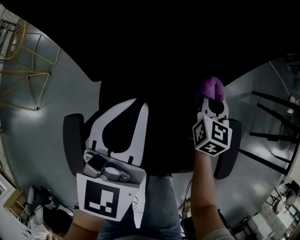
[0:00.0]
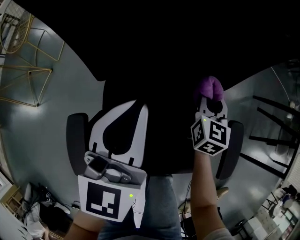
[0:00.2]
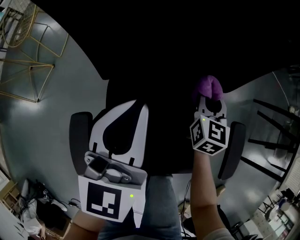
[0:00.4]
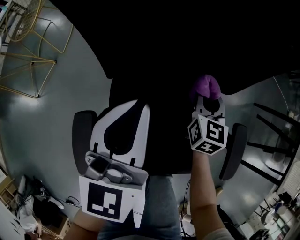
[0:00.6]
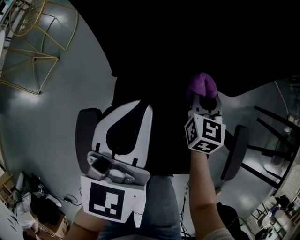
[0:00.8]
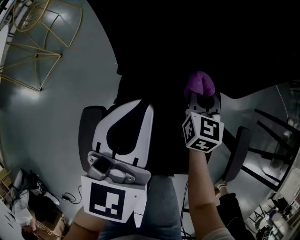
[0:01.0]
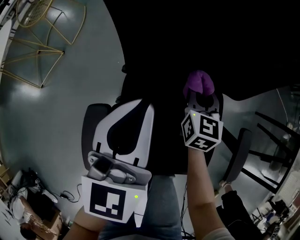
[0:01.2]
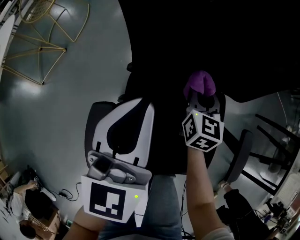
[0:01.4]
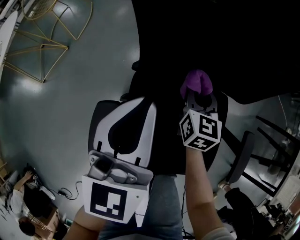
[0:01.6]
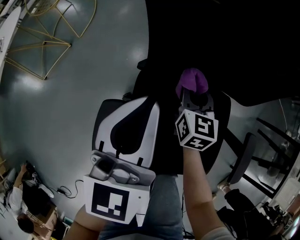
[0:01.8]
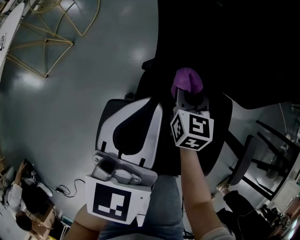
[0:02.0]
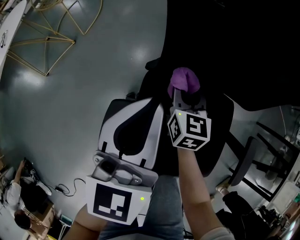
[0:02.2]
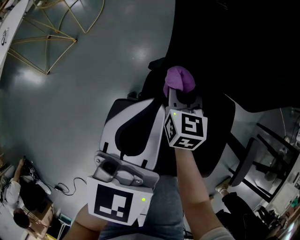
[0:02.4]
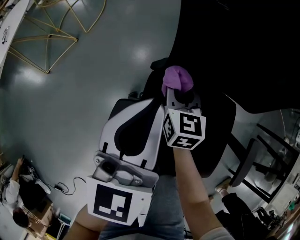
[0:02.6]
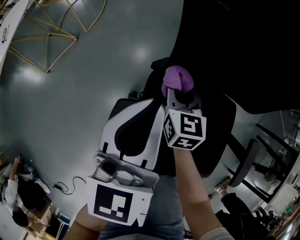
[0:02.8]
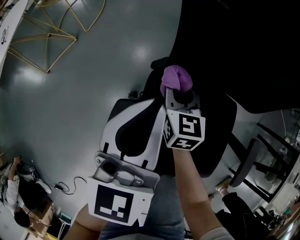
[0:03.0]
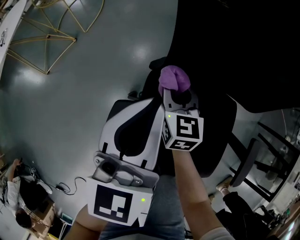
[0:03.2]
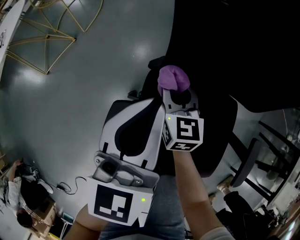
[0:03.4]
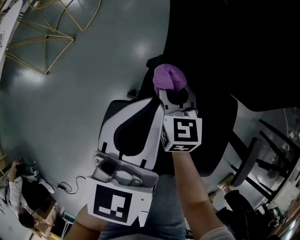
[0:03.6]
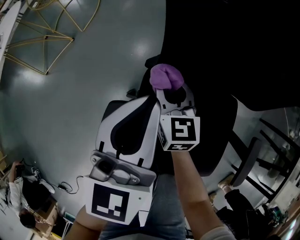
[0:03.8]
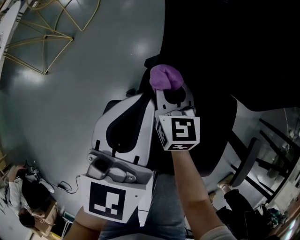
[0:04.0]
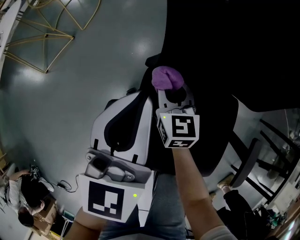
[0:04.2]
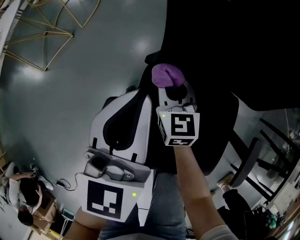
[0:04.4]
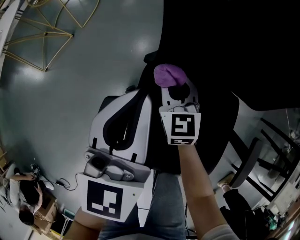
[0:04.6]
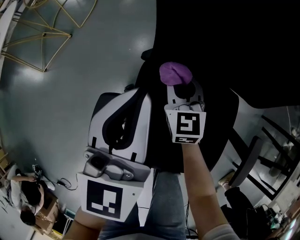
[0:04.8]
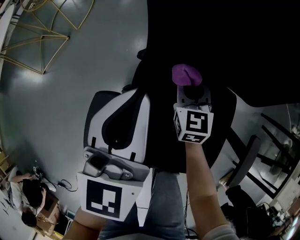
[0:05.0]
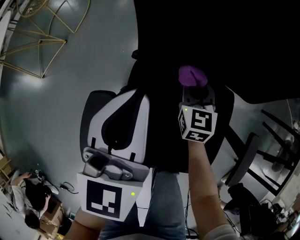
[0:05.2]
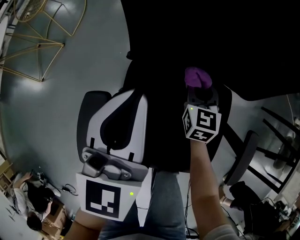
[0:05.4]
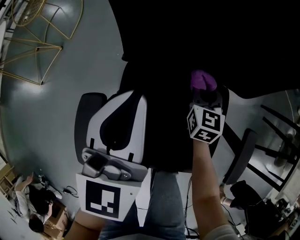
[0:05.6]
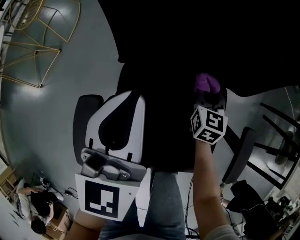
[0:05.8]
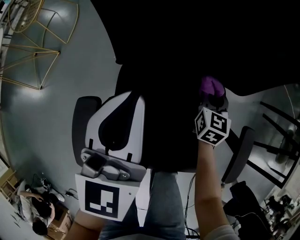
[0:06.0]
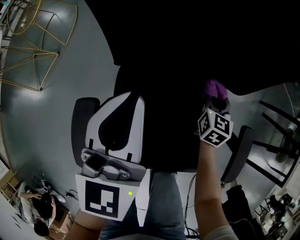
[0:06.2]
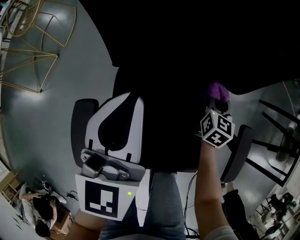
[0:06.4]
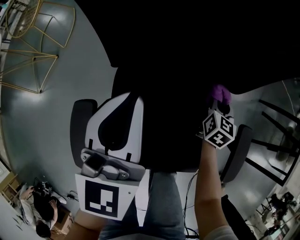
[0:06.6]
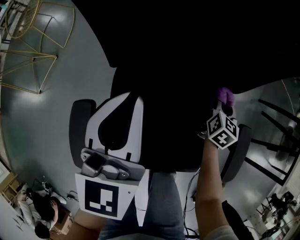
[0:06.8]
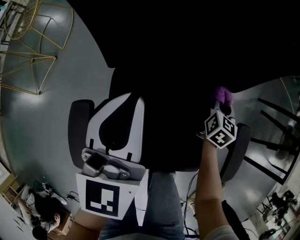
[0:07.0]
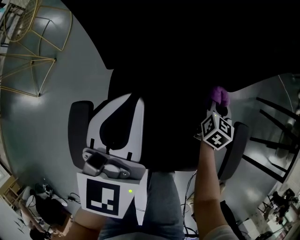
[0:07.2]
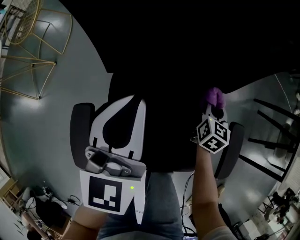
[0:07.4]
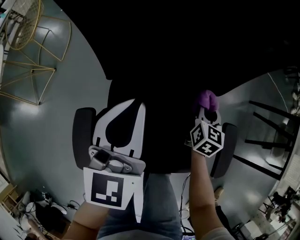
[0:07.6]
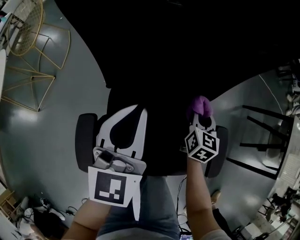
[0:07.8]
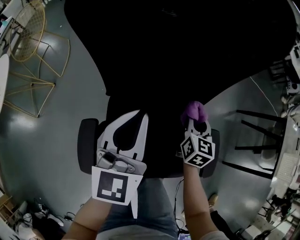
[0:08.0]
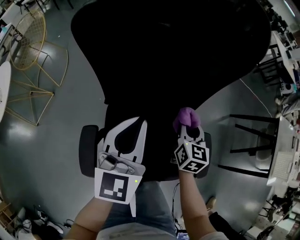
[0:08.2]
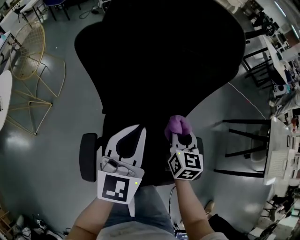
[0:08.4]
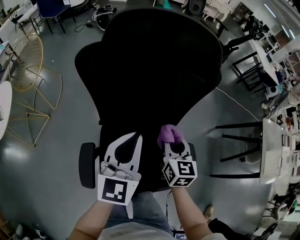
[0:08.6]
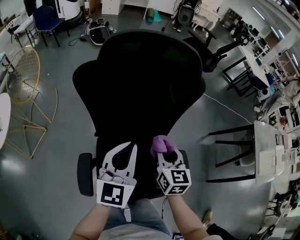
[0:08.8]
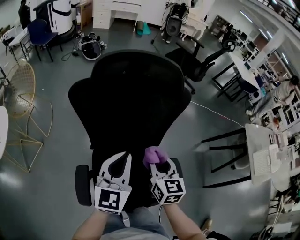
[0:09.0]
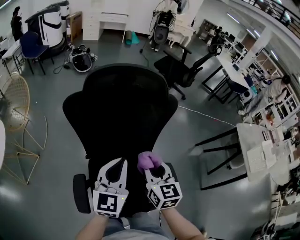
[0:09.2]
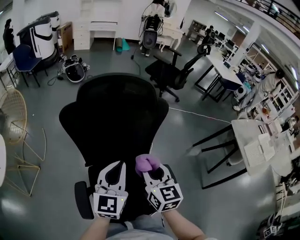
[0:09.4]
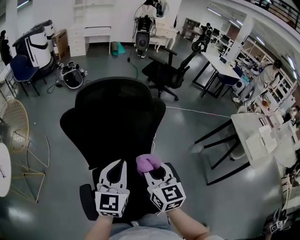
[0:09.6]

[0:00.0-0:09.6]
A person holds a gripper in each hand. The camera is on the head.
0:00.0 to 0:01.6: The left gripper goes roughly 10 cm to the left; the right gripper shifts about 20 cm to the left.
0:01.6 to 0:03.2: The right gripper shifts approximately 15 cm to the left. Meanwhile the left gripper goes about 5 cm to the left.
0:03.2 to 0:04.8: The grippers make only small movements.
0:04.8 to 0:06.4: The left gripper goes some 10 cm to the right. Meanwhile the right gripper travels to the right by some 30 cm, and turns by approximately 40 degrees.
0:06.4 to 0:08.0: The right gripper moves upward, approximately 15 cm; the left gripper goes about 5 cm upward.
0:08.0 to 0:09.6: The right gripper heads upward, covering about 25 cm, and rotates approximately 20 degrees. Meanwhile the left gripper is displaced upward and to the right by about 15 cm.

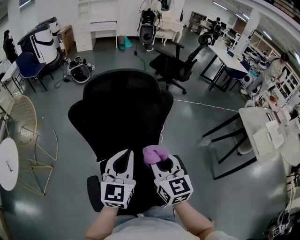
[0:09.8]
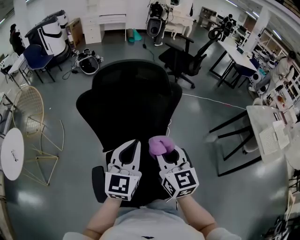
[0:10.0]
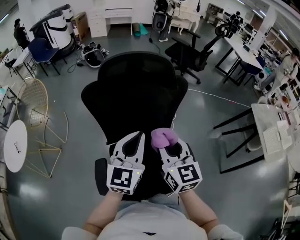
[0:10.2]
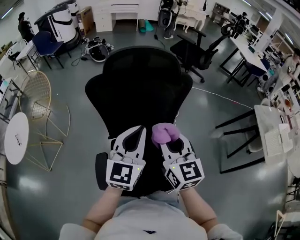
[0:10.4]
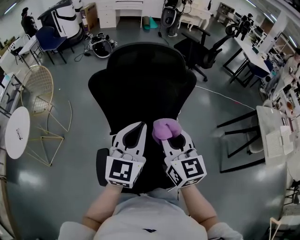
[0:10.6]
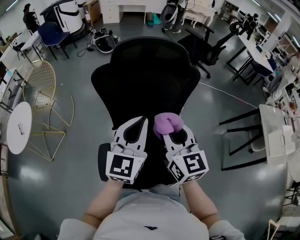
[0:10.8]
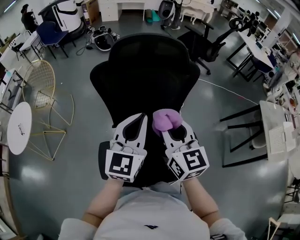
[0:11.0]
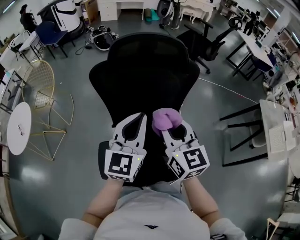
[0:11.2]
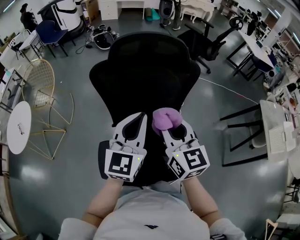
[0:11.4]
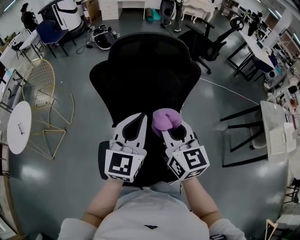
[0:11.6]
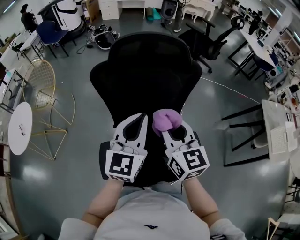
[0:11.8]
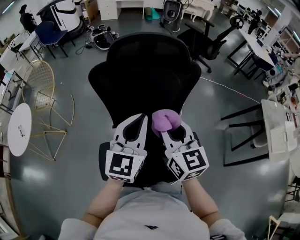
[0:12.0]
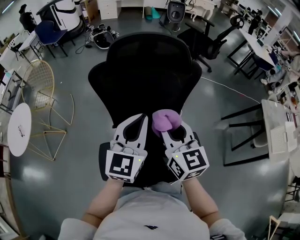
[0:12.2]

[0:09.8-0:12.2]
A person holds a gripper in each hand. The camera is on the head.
0:09.8 to 0:11.0: The right gripper moves roughly 5 cm; the left gripper shifts by approximately 5 cm.
0:11.0 to 0:12.2: The grippers make only small movements.

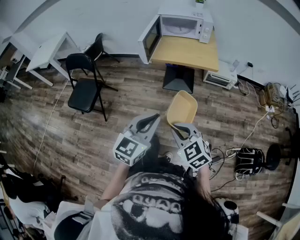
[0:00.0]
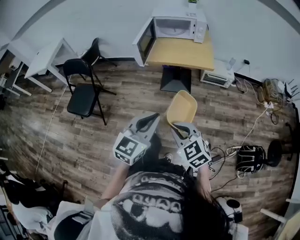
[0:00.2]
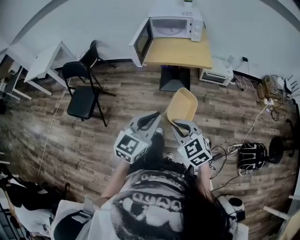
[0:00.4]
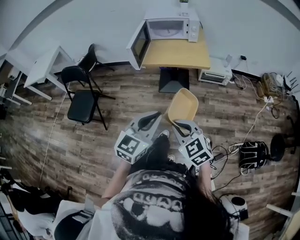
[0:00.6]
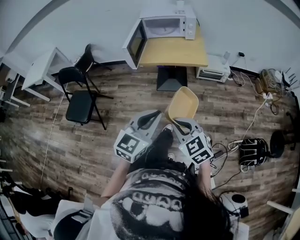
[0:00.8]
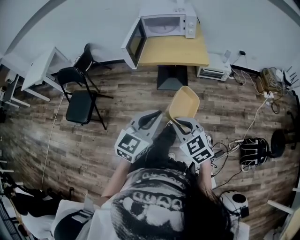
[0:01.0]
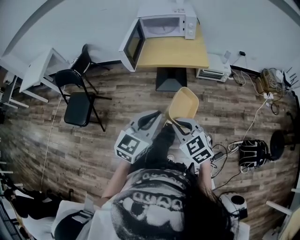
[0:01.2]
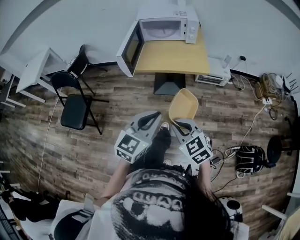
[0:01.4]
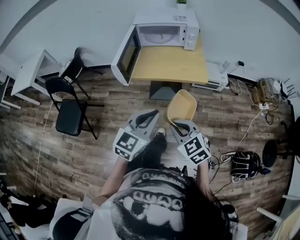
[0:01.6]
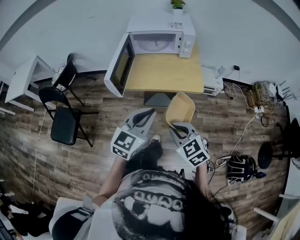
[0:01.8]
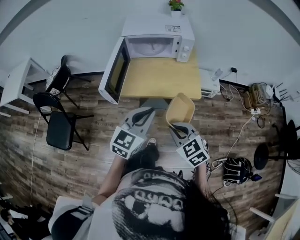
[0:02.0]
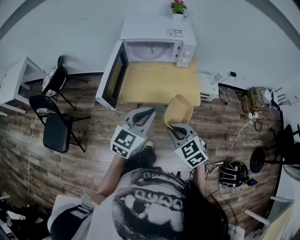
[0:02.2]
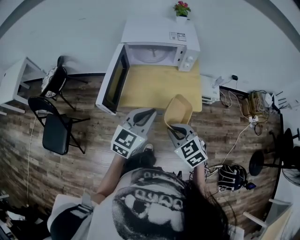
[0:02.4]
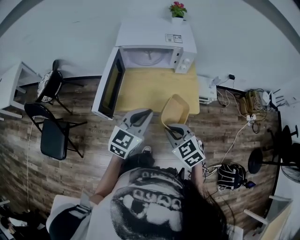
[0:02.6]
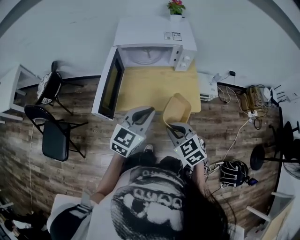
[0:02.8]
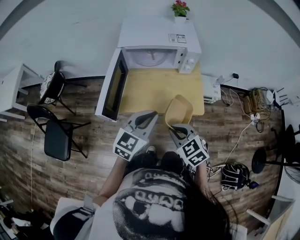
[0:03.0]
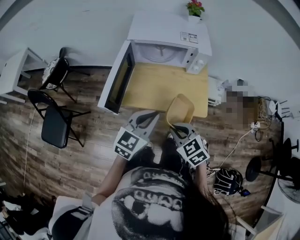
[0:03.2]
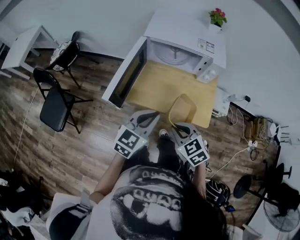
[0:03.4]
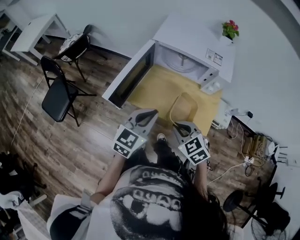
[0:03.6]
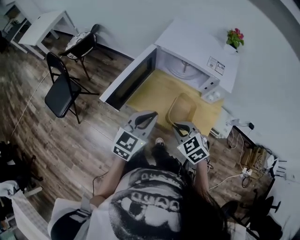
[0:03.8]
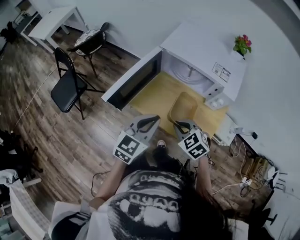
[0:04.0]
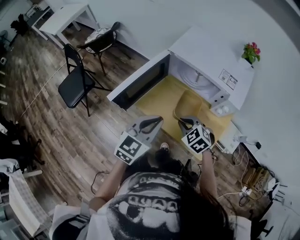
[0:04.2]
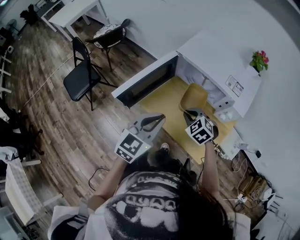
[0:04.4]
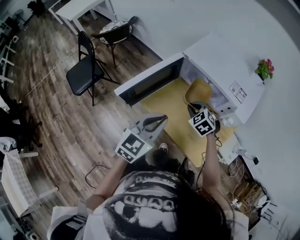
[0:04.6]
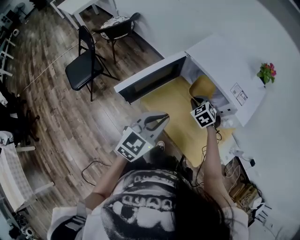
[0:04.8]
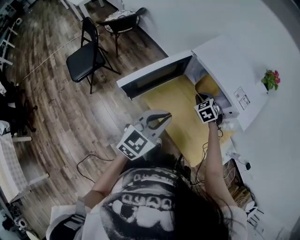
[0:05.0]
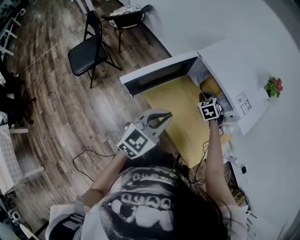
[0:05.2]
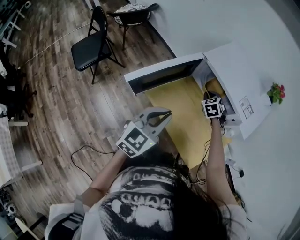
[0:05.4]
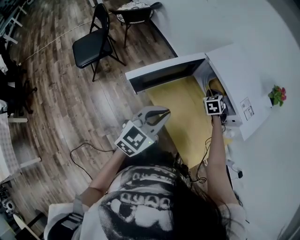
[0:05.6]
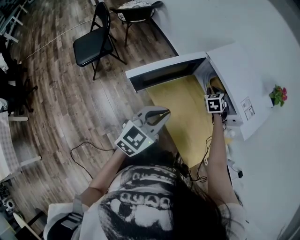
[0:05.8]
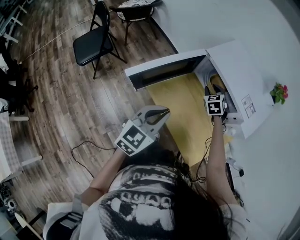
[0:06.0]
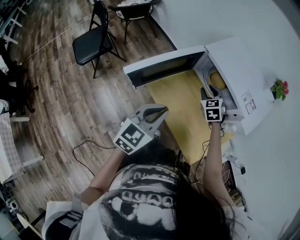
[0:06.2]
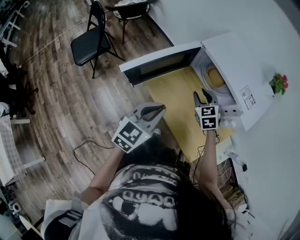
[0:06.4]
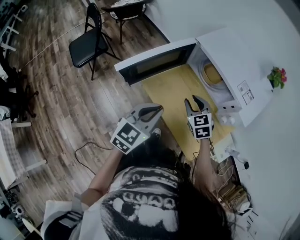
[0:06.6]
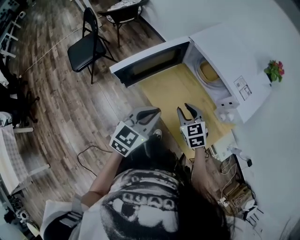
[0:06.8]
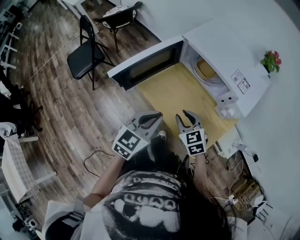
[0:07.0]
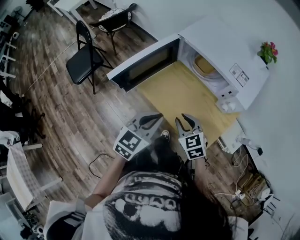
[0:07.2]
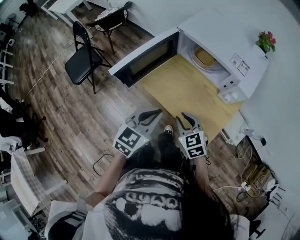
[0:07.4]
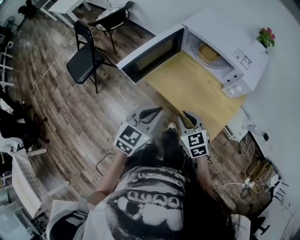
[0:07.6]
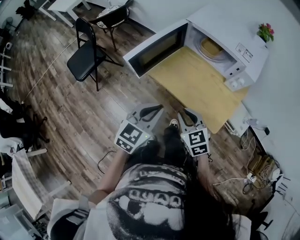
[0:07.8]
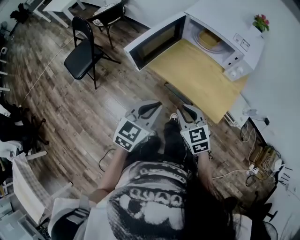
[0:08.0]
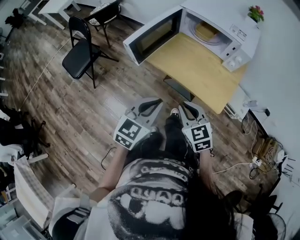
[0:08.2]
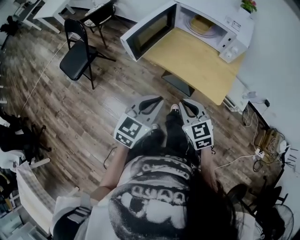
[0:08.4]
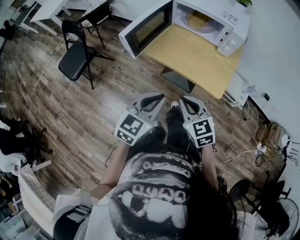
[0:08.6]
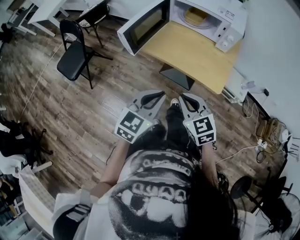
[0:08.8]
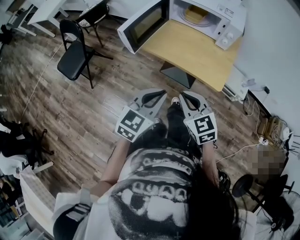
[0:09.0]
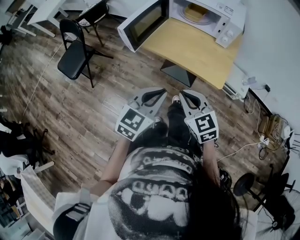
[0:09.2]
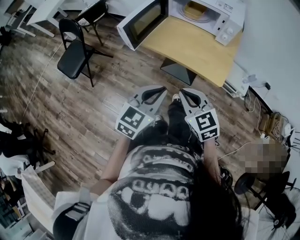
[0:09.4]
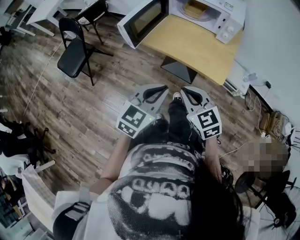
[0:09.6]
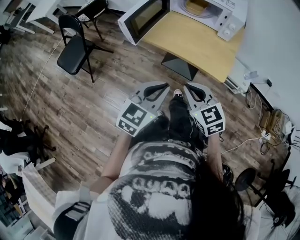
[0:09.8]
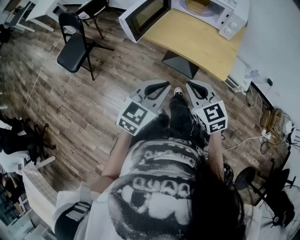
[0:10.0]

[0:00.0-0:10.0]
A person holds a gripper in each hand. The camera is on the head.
0:00.0 to 0:01.4: The grippers both shift forward and to the right by about 15 cm.
0:01.4 to 0:02.8: Both grippers move forward, roughly 35 cm.
0:02.8 to 0:04.2: The left gripper ends up approximately 10 cm from where it was, and turns by about 30 degrees. Meanwhile the right gripper changes place by roughly 20 cm, and swivels about 40 degrees.
0:04.2 to 0:05.8: The right gripper is displaced forward by some 25 cm.
0:05.8 to 0:07.2: The right gripper moves backward, some 30 cm, and changes its angle by roughly 30 degrees. The left gripper changes place by approximately 5 cm.
0:07.2 to 0:08.6: The right gripper goes some 20 cm backward, and closes up, while the left gripper is displaced backward and to the left by approximately 20 cm.
0:08.6 to 0:10.0: There are only small adjustments of the grippers.

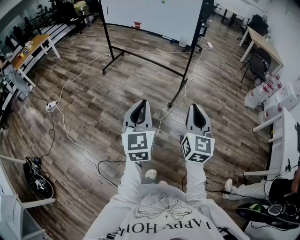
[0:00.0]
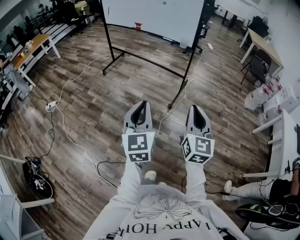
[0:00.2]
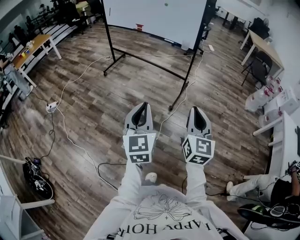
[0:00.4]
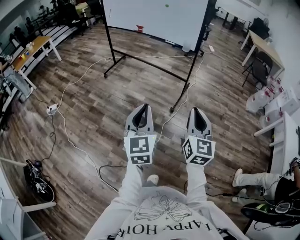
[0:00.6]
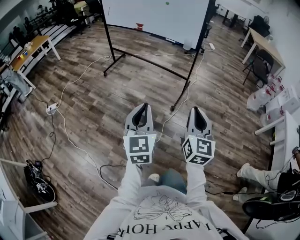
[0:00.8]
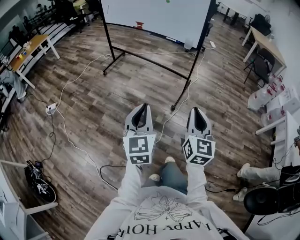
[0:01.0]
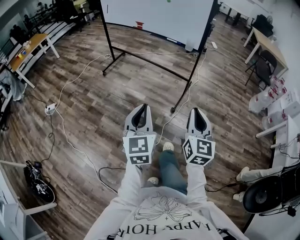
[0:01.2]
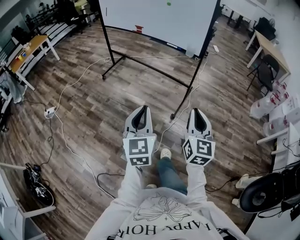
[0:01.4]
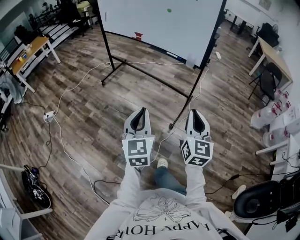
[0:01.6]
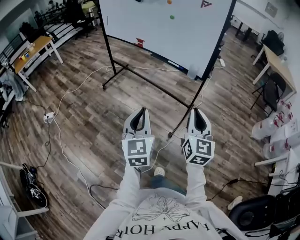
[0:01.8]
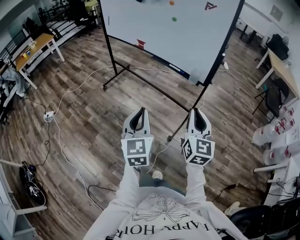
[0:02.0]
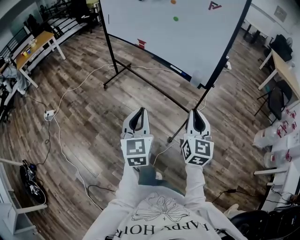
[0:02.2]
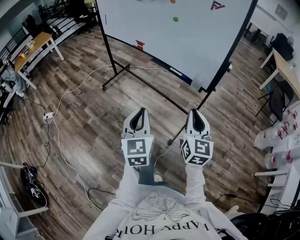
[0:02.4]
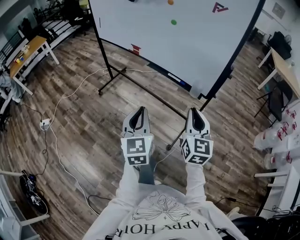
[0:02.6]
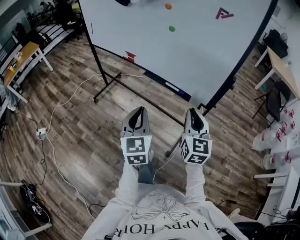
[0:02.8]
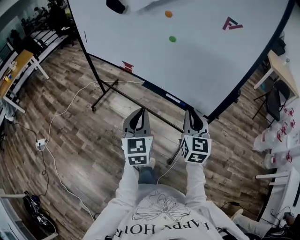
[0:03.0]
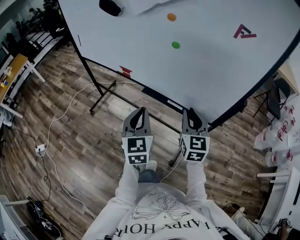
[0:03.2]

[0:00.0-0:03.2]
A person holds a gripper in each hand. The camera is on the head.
0:00.0 to 0:01.6: Both grippers move forward, some 30 cm.
0:01.6 to 0:03.2: The two grippers travel together, forward, some 60 cm.
